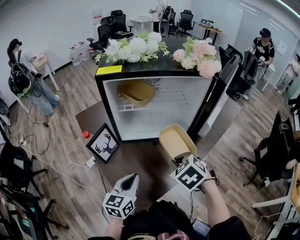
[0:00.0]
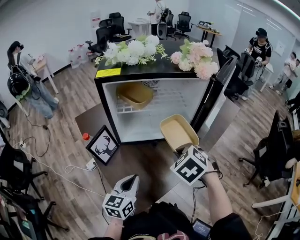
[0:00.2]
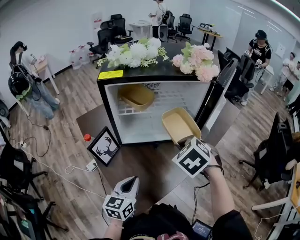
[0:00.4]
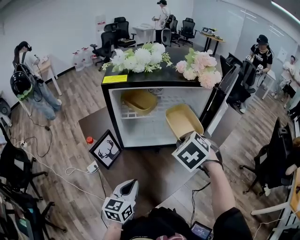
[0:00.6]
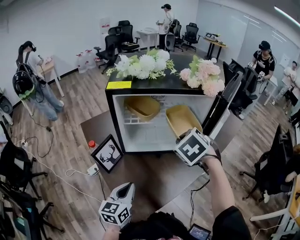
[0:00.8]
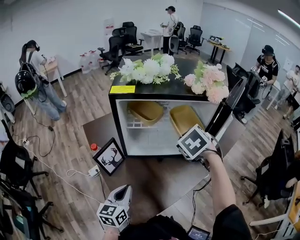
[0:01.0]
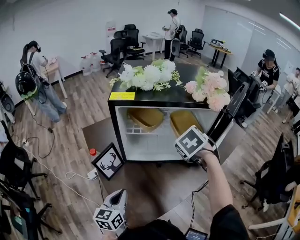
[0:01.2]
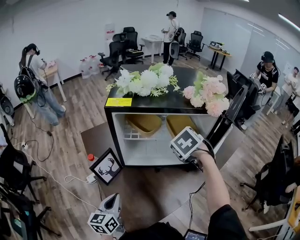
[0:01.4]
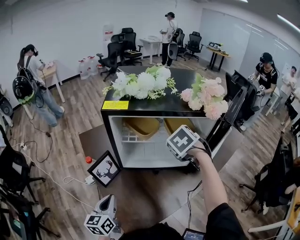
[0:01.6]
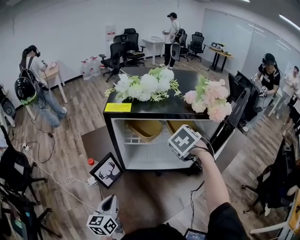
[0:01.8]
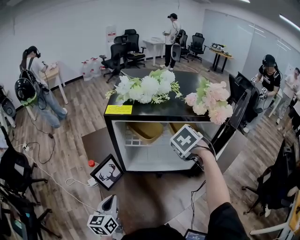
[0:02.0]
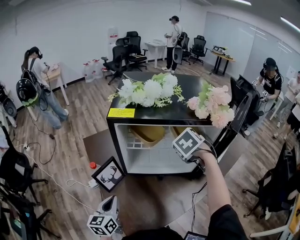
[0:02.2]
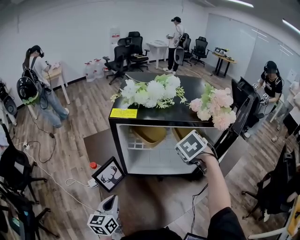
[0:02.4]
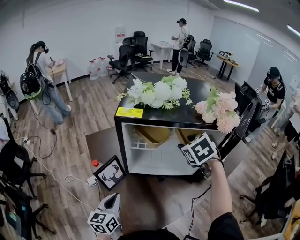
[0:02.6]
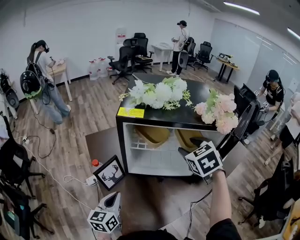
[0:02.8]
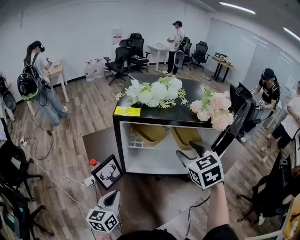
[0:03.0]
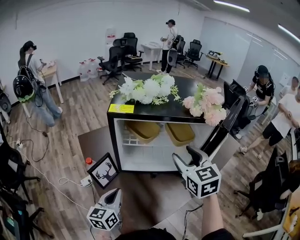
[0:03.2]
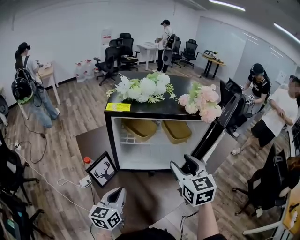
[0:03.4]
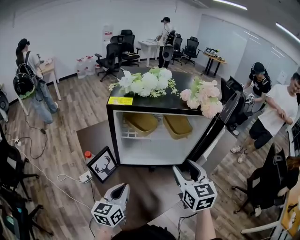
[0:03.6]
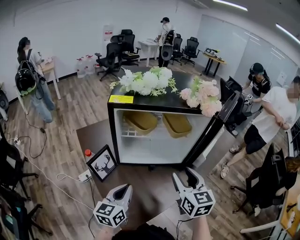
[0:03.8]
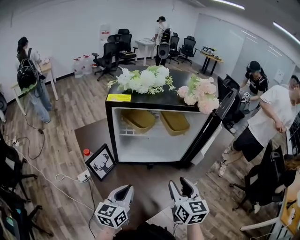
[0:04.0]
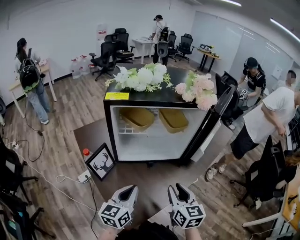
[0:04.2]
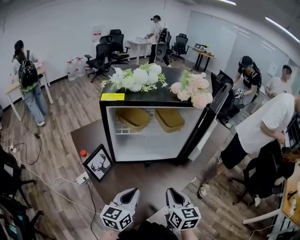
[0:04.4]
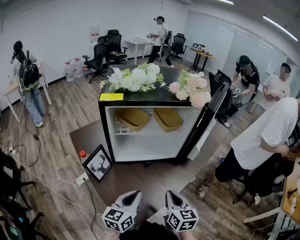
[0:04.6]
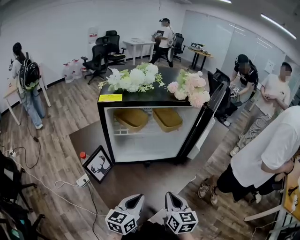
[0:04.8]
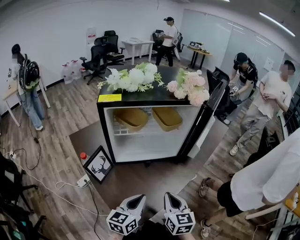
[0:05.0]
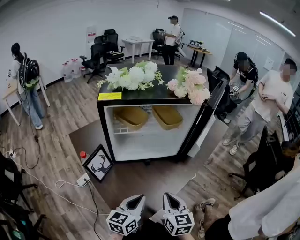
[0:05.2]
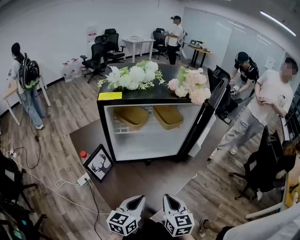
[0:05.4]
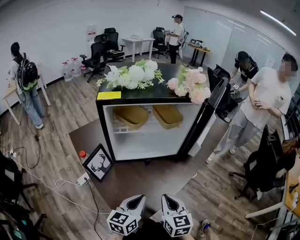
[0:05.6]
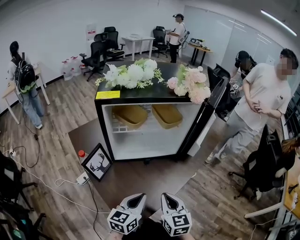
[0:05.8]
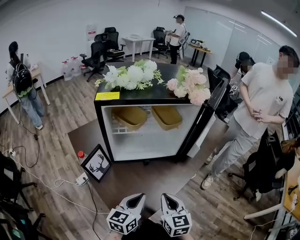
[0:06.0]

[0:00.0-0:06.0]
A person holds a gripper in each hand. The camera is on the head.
0:00.0 to 0:01.6: The right gripper shifts approximately 25 cm forward and upward; the left gripper is displaced to the left by about 10 cm, and turns by roughly 20 degrees.
0:01.6 to 0:03.0: The right gripper shifts about 10 cm upward, rotates approximately 30 degrees, and opens.
0:03.0 to 0:04.4: The right gripper travels backward and downward by about 25 cm, turns by some 40 degrees, and closes up, while the left gripper shifts about 10 cm to the right, and swivels approximately 20 degrees.
0:04.4 to 0:06.0: The grippers stay close to where they were, moving slightly.

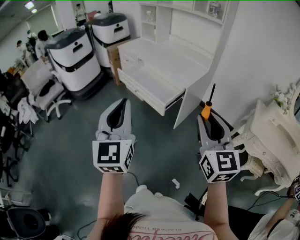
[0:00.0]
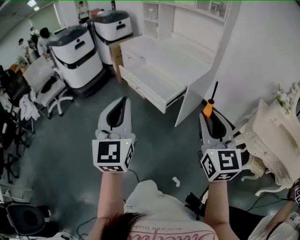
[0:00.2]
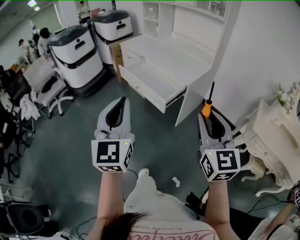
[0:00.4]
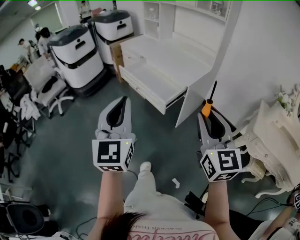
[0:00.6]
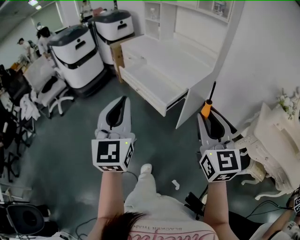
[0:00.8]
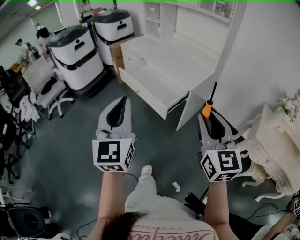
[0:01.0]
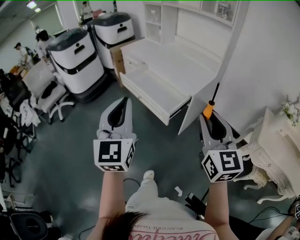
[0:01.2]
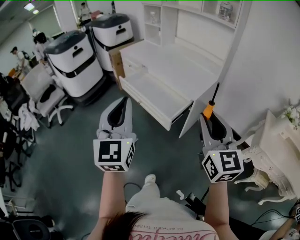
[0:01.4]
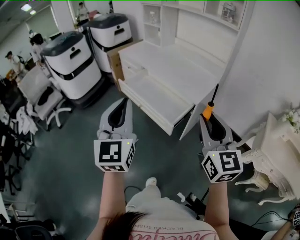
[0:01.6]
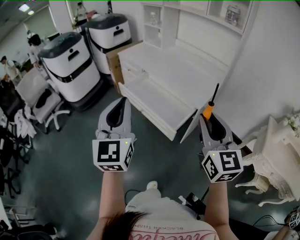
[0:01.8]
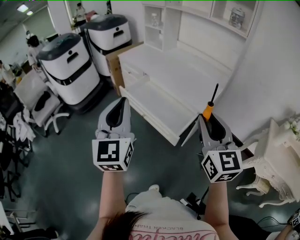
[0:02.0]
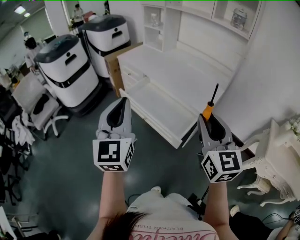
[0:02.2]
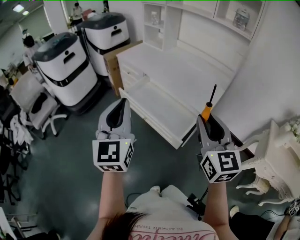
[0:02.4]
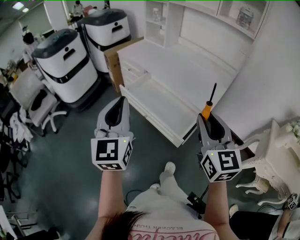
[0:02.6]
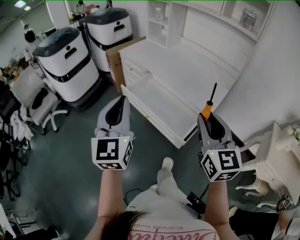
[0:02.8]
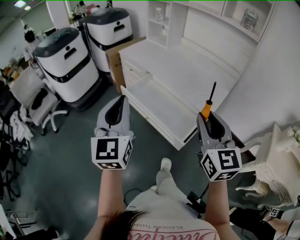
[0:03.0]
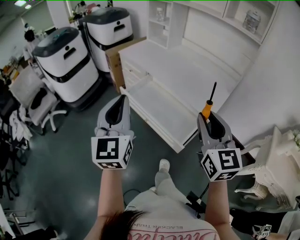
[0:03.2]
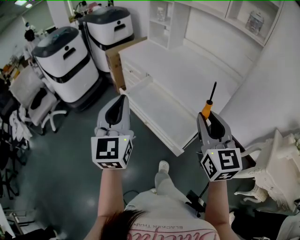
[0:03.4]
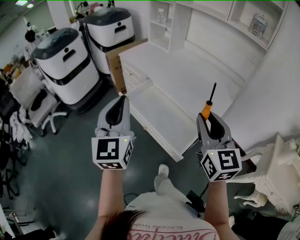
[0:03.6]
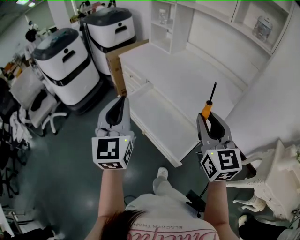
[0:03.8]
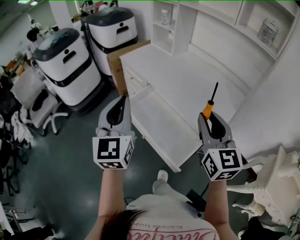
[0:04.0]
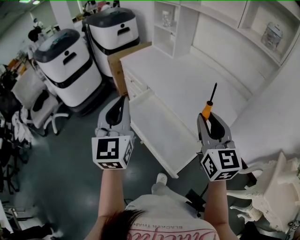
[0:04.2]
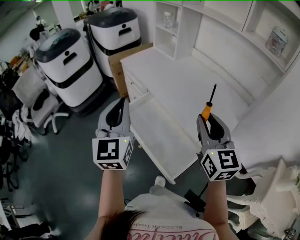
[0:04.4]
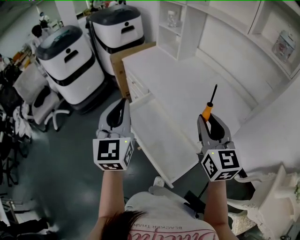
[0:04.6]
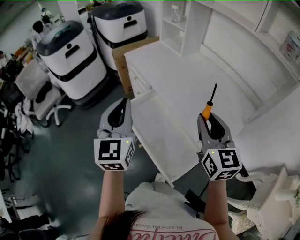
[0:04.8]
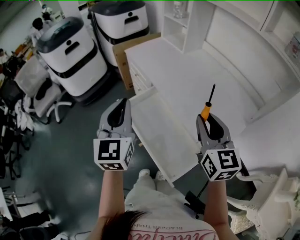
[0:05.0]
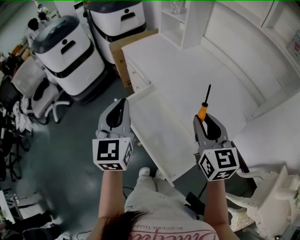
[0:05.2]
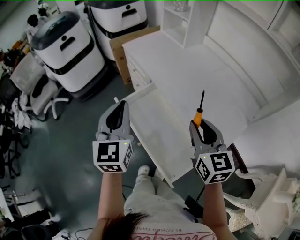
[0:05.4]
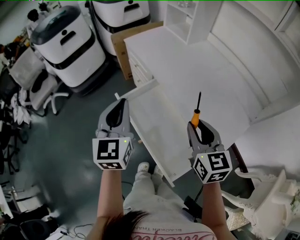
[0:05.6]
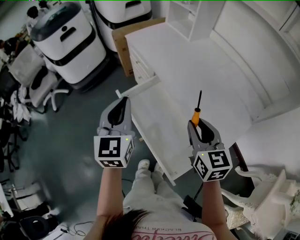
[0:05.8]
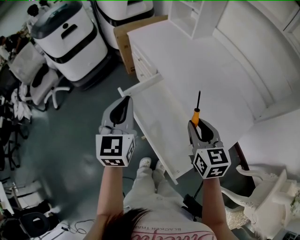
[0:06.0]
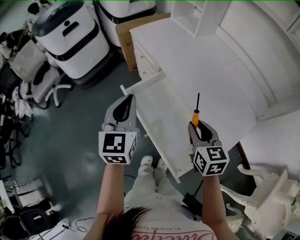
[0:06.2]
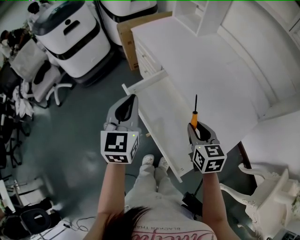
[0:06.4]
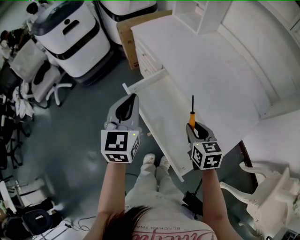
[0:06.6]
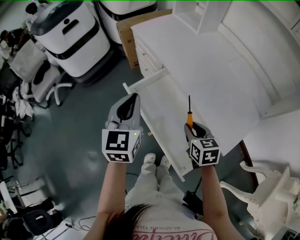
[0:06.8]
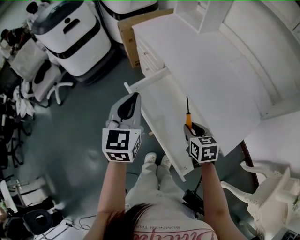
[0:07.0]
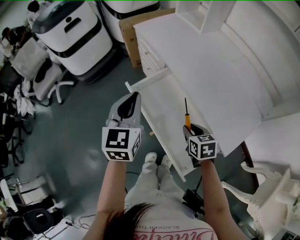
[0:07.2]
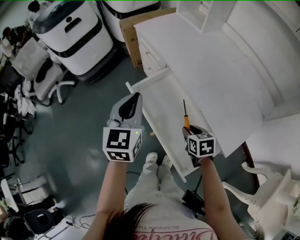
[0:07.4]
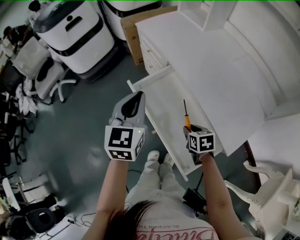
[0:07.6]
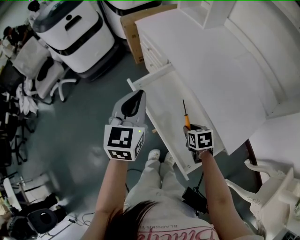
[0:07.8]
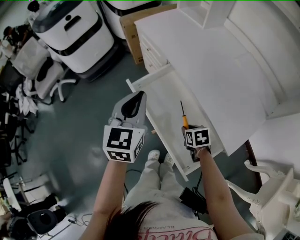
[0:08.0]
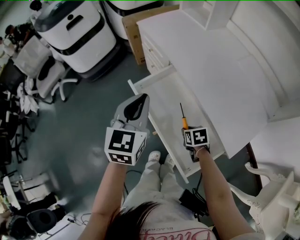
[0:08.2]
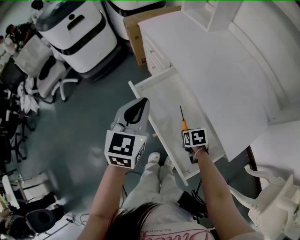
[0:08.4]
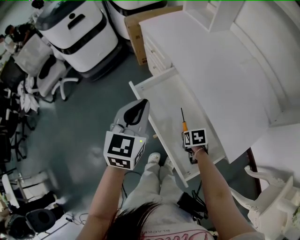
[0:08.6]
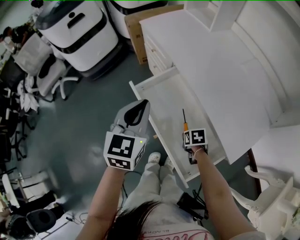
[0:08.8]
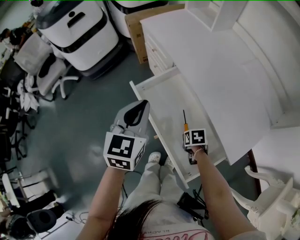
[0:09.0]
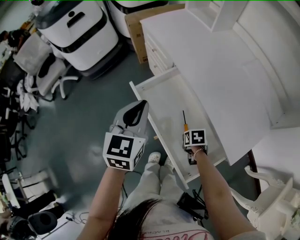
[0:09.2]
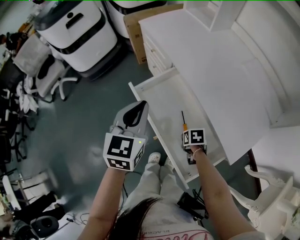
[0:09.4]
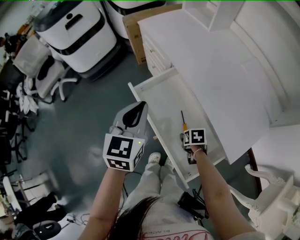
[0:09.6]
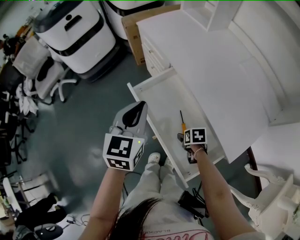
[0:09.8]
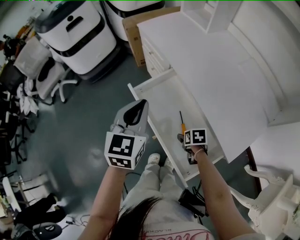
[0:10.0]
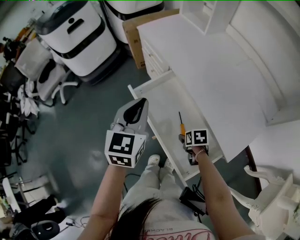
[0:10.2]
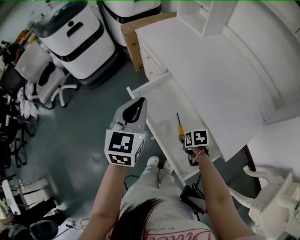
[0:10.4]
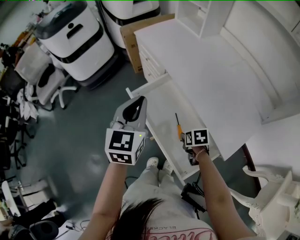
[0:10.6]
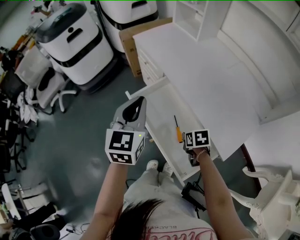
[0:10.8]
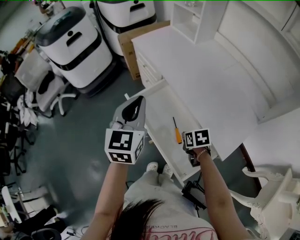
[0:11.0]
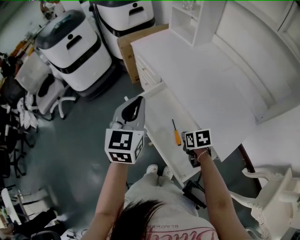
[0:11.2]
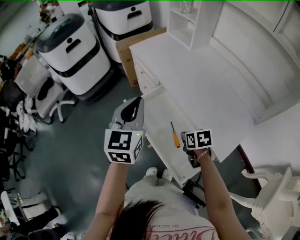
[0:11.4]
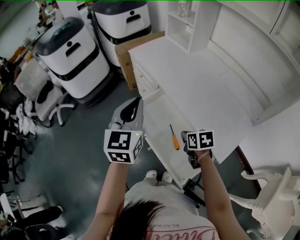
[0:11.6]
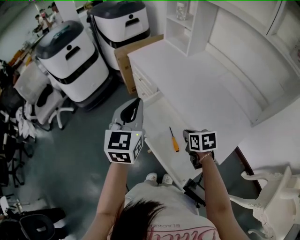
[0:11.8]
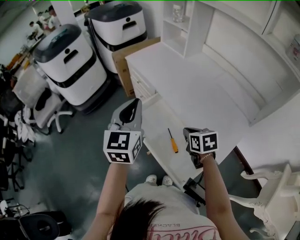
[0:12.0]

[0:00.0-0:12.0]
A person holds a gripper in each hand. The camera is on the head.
0:00.0 to 0:01.6: Both grippers move forward, some 15 cm.
0:01.6 to 0:03.0: The grippers both shift forward and to the left by some 15 cm.
0:03.0 to 0:04.4: The grippers both shift forward by about 20 cm.
0:04.4 to 0:06.0: The grippers both shift downward and forward by approximately 15 cm. The right gripper turns by about 20 degrees.
0:06.0 to 0:07.6: The right gripper goes some 20 cm downward, and tilts its fingers approximately 30 degrees downward.
0:07.6 to 0:09.0: The right gripper heads downward, covering approximately 10 cm, and changes its angle by roughly 20 degrees.
0:09.0 to 0:10.4: The right gripper travels upward by some 5 cm, and opens its fingers.
0:10.4 to 0:12.0: The left gripper travels upward by some 10 cm, while the right gripper heads upward, covering about 20 cm, rotates about 20 degrees, and closes its fingers.

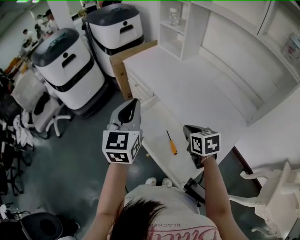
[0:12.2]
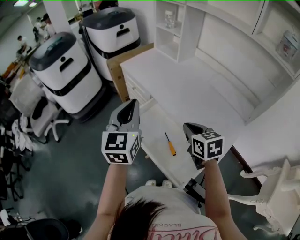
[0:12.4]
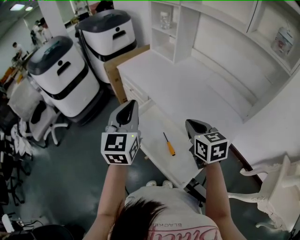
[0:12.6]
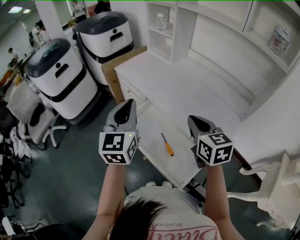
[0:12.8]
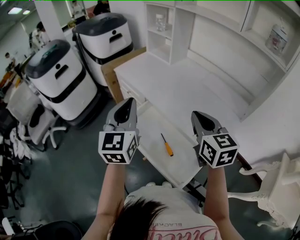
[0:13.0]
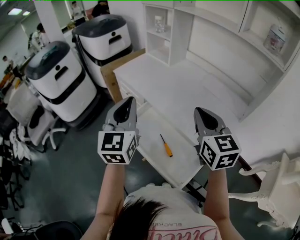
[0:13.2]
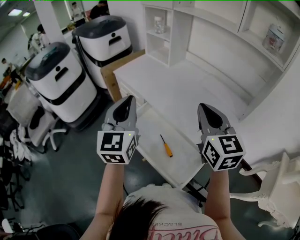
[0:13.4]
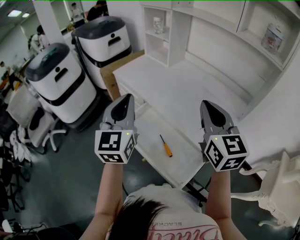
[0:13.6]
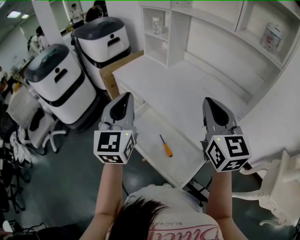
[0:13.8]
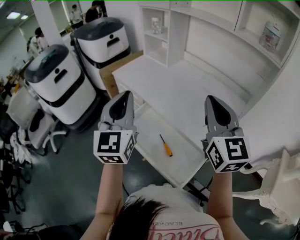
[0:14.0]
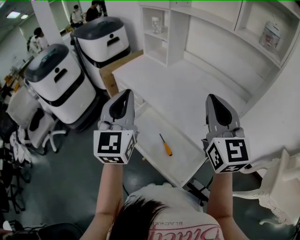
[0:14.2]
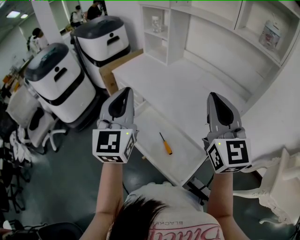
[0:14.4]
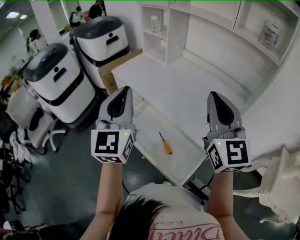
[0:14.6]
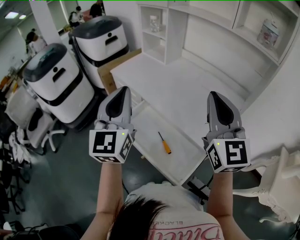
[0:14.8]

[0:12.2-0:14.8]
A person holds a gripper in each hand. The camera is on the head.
0:12.2 to 0:13.4: The left gripper travels upward by roughly 5 cm. The right gripper moves upward, some 20 cm, and points its fingers approximately 30 degrees further upward.
0:13.4 to 0:14.8: The left gripper ends up some 5 cm from where it was. Meanwhile the right gripper shifts roughly 5 cm upward.
